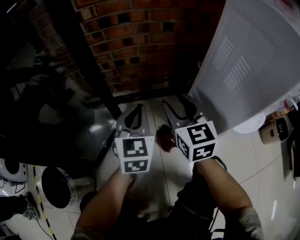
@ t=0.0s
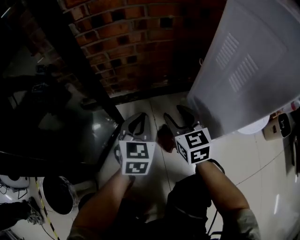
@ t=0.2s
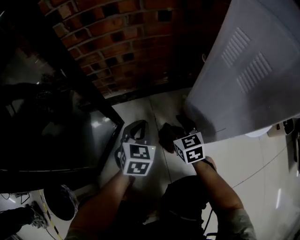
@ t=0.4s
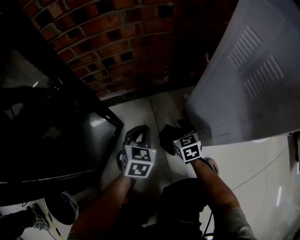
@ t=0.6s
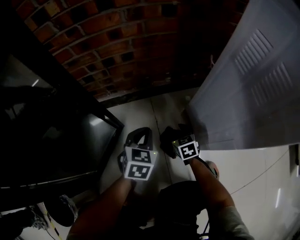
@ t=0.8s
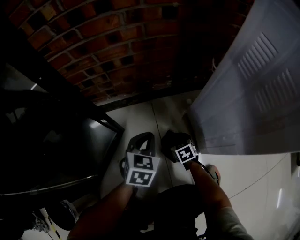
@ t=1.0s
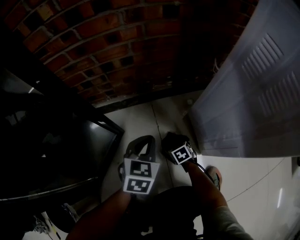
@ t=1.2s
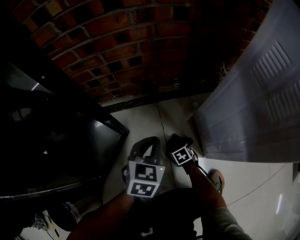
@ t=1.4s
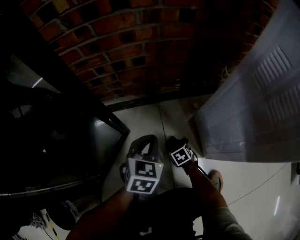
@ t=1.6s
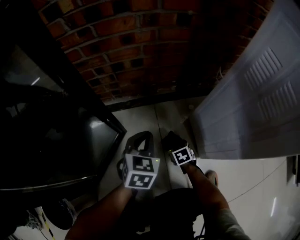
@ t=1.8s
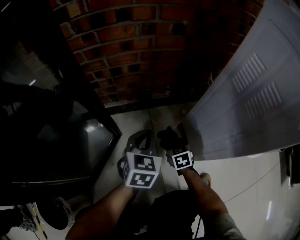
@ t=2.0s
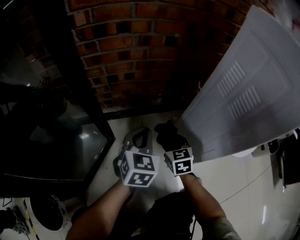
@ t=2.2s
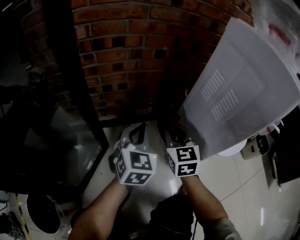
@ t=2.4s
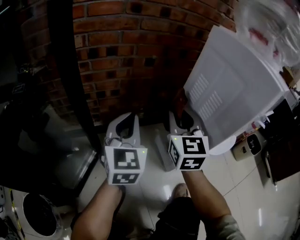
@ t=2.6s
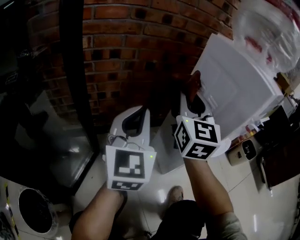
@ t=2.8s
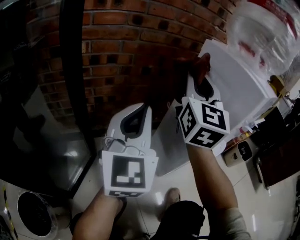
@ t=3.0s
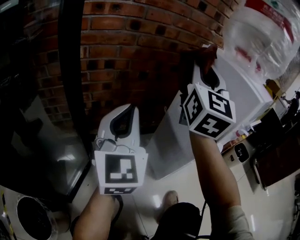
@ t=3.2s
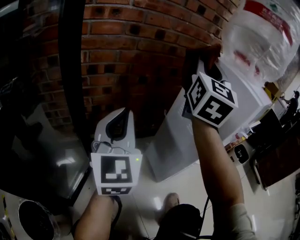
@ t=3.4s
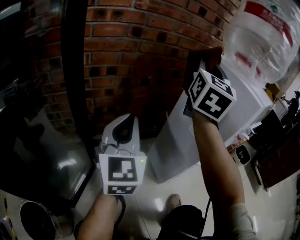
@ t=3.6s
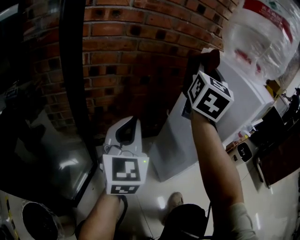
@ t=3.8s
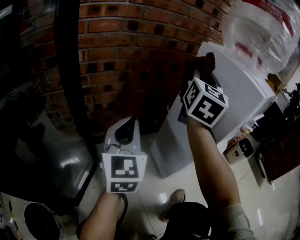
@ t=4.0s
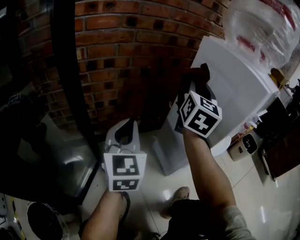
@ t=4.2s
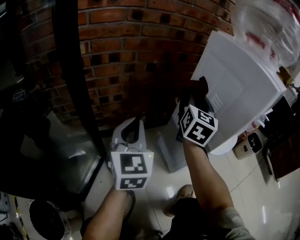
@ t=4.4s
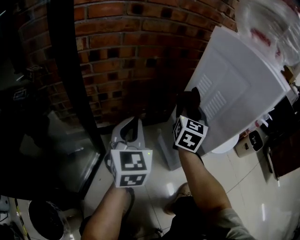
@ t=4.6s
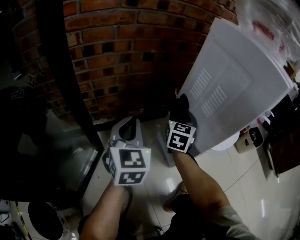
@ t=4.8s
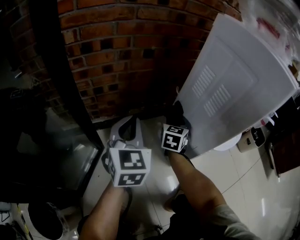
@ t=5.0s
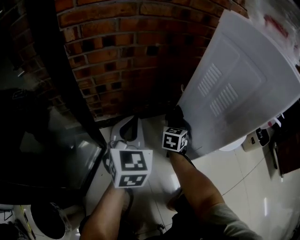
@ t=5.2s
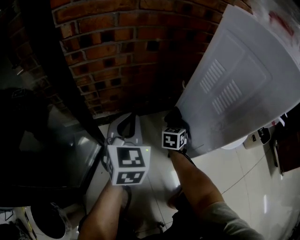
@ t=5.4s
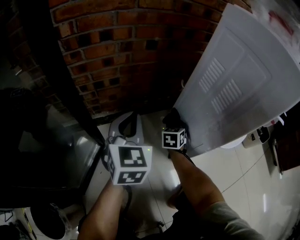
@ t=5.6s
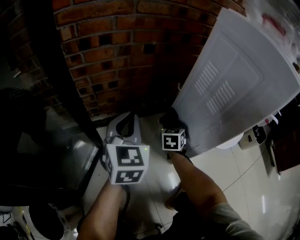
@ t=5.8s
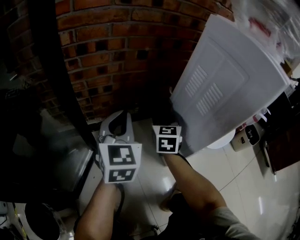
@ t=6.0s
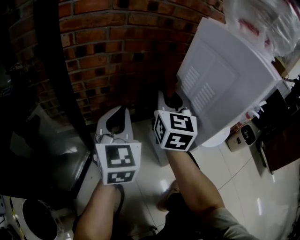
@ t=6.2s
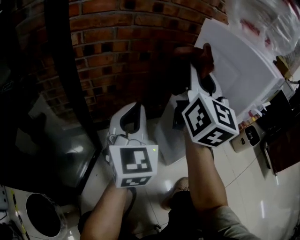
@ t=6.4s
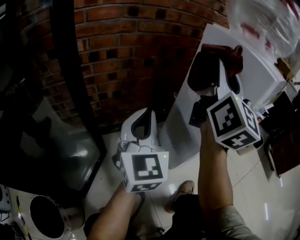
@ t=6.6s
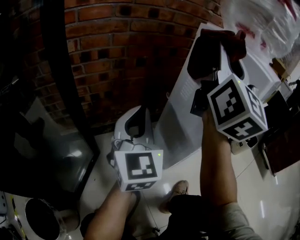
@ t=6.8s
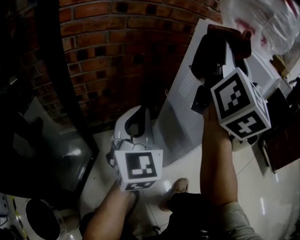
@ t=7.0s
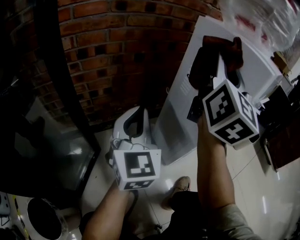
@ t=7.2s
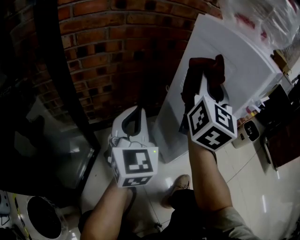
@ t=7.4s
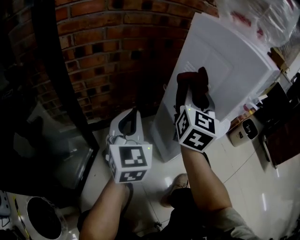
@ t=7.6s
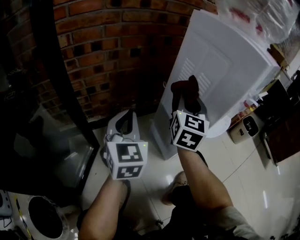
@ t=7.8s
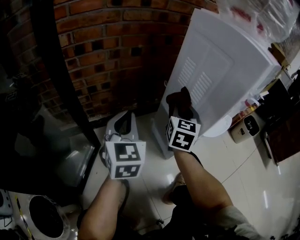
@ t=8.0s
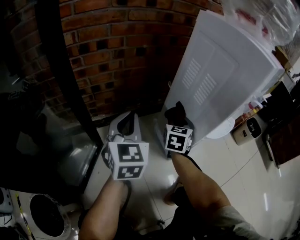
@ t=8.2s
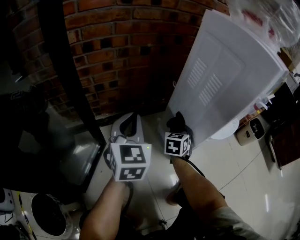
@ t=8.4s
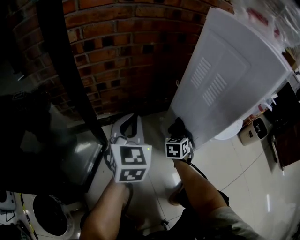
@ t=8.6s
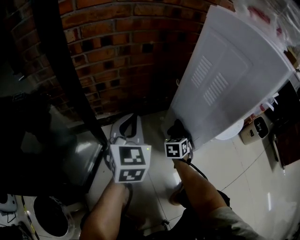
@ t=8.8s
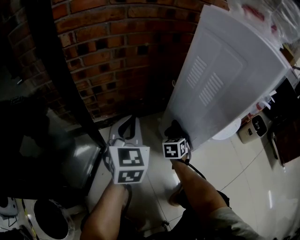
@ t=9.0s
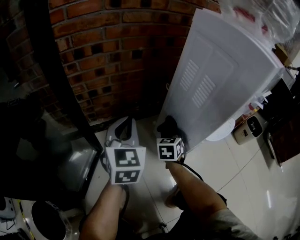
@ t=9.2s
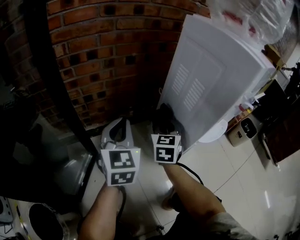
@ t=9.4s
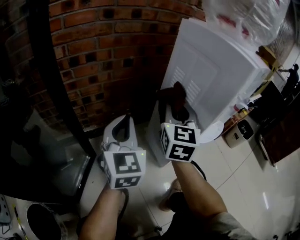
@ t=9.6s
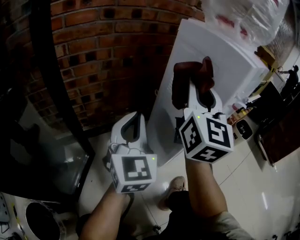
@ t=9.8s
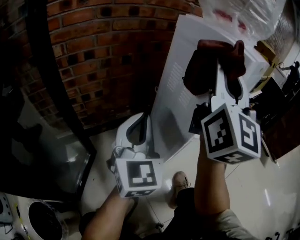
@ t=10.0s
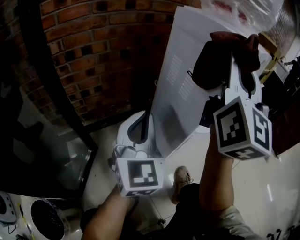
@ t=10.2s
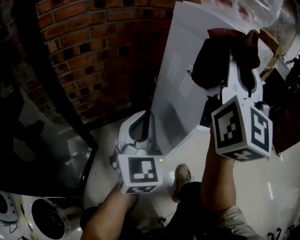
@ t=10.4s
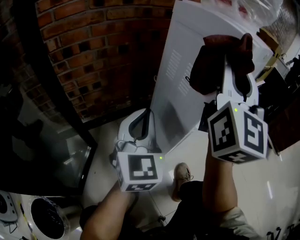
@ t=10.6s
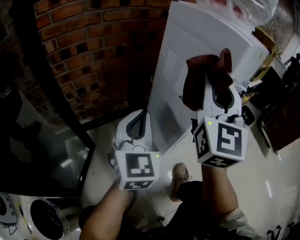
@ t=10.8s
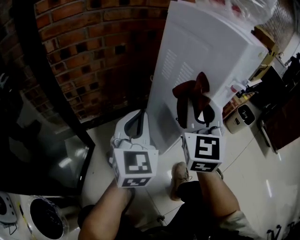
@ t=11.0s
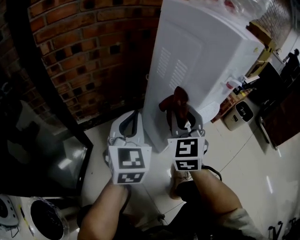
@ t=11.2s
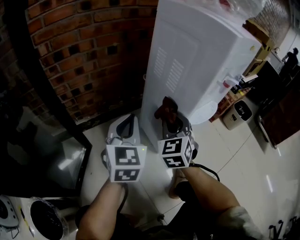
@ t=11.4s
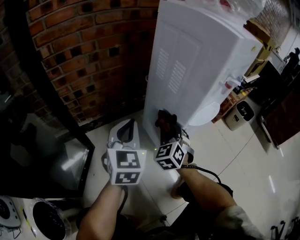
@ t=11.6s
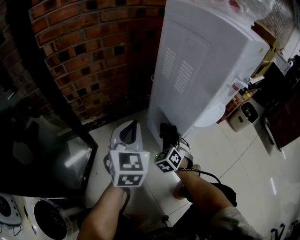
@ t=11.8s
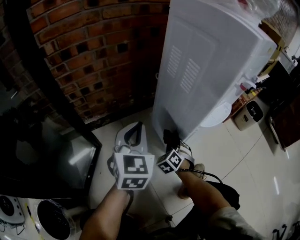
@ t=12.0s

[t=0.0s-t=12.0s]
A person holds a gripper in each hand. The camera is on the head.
t=0.0s to t=1.6s: The right gripper travels downward by approximately 50 cm, tips its fingers downward by about 50 degrees, and closes up. Meanwhile the left gripper heads downward, covering some 15 cm, and changes its angle by roughly 20 degrees.
t=1.6s to t=3.0s: The right gripper heads upward, covering roughly 70 cm, and tips its fingers upward by about 80 degrees, while the left gripper is displaced upward by some 40 cm, and angles its fingers upward, by about 50 degrees.
t=3.0s to t=4.4s: The right gripper travels downward, forward and to the right by approximately 15 cm, and rotates roughly 20 degrees, while the left gripper goes approximately 10 cm downward.
t=4.4s to t=6.0s: The right gripper is displaced downward by roughly 20 cm, and rotates about 30 degrees.
t=6.0s to t=7.6s: The right gripper heads upward and to the right, covering roughly 20 cm, and turns by roughly 30 degrees, while the left gripper travels upward and back again, roughly 10 cm each way.
t=7.6s to t=9.0s: The right gripper goes approximately 35 cm downward, and points its fingers about 40 degrees further downward, while the left gripper travels downward by roughly 5 cm.
t=9.0s to t=10.4s: The right gripper heads upward, covering roughly 50 cm, and tips its fingers upward by some 70 degrees. The left gripper shifts about 15 cm to the right and upward.
t=10.4s to t=12.0s: The left gripper heads downward, covering some 10 cm; the right gripper heads downward, covering about 60 cm, and points its fingers about 70 degrees further downward.

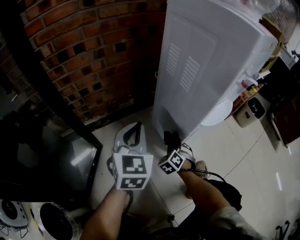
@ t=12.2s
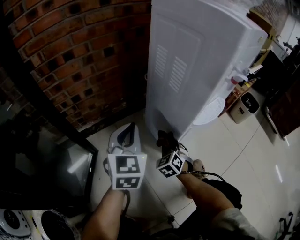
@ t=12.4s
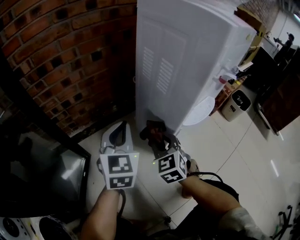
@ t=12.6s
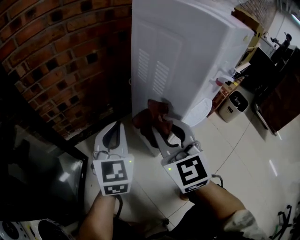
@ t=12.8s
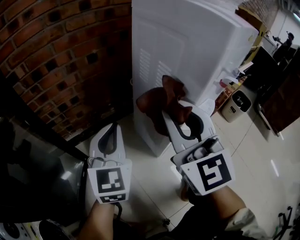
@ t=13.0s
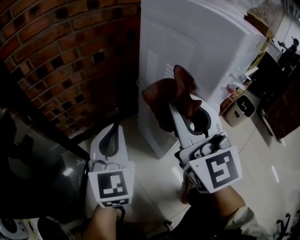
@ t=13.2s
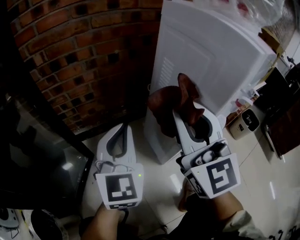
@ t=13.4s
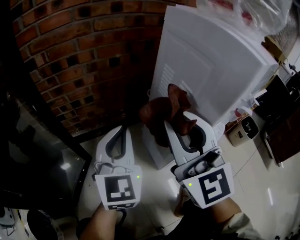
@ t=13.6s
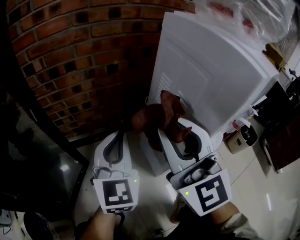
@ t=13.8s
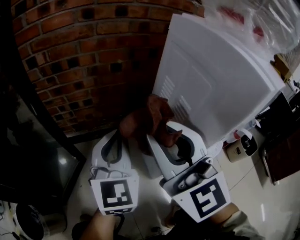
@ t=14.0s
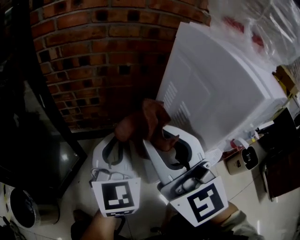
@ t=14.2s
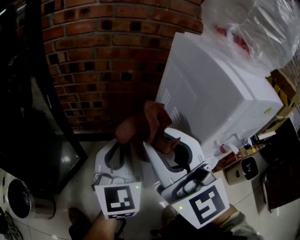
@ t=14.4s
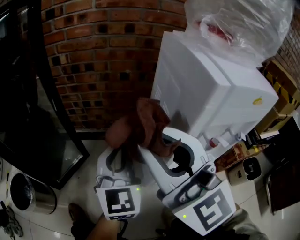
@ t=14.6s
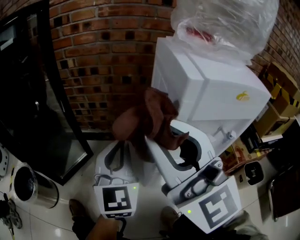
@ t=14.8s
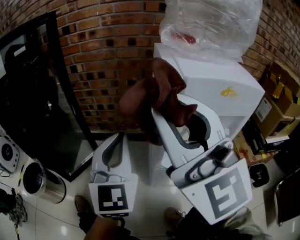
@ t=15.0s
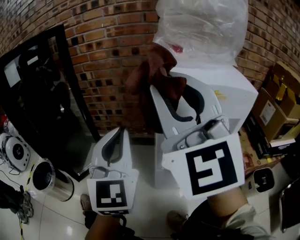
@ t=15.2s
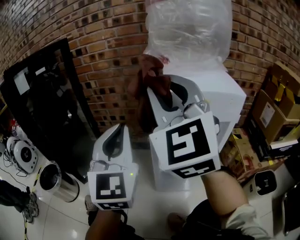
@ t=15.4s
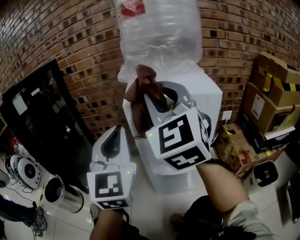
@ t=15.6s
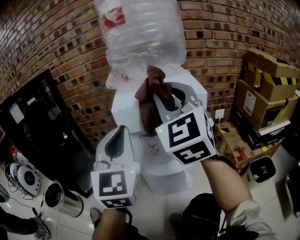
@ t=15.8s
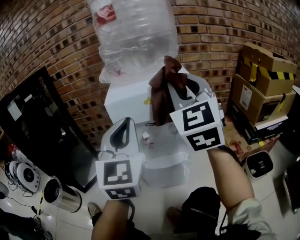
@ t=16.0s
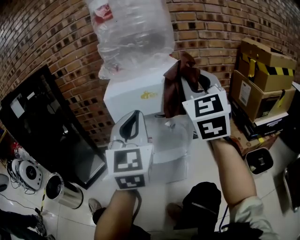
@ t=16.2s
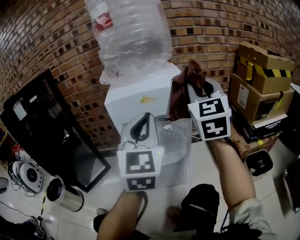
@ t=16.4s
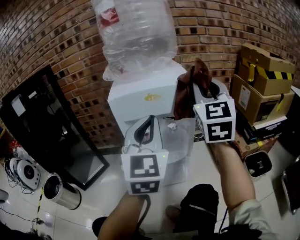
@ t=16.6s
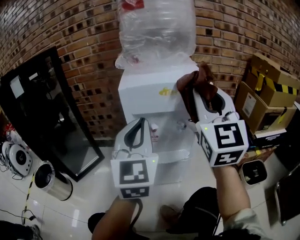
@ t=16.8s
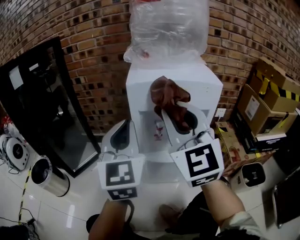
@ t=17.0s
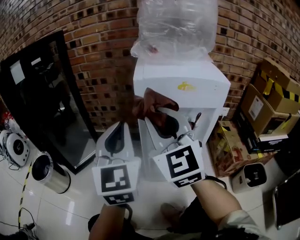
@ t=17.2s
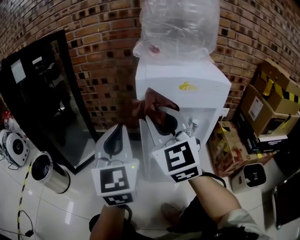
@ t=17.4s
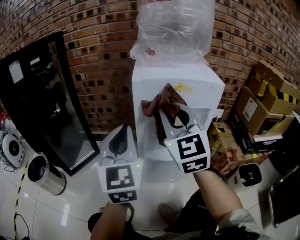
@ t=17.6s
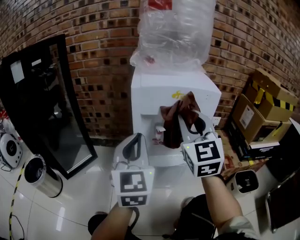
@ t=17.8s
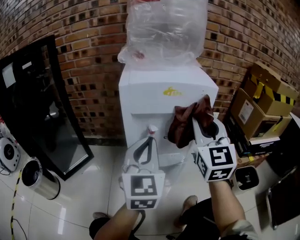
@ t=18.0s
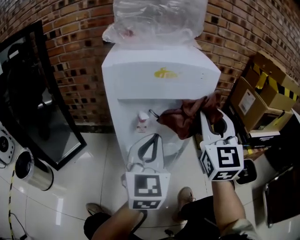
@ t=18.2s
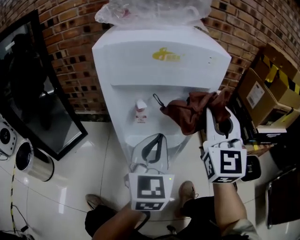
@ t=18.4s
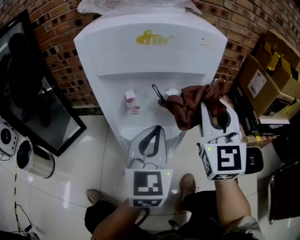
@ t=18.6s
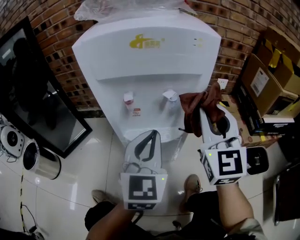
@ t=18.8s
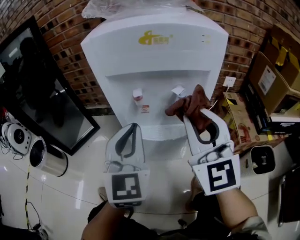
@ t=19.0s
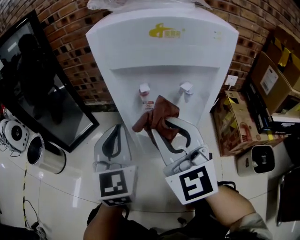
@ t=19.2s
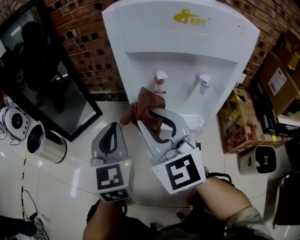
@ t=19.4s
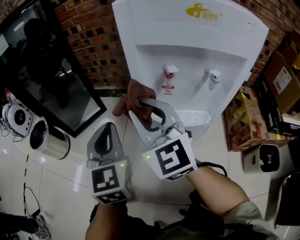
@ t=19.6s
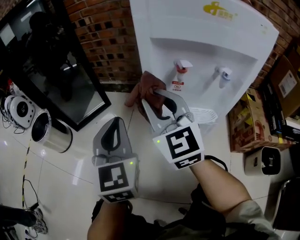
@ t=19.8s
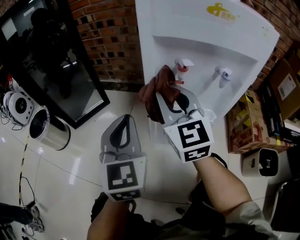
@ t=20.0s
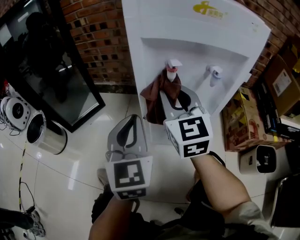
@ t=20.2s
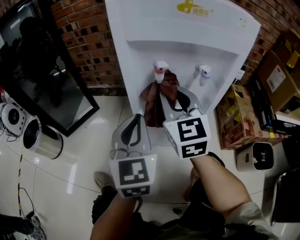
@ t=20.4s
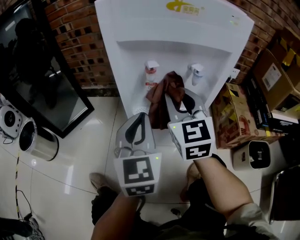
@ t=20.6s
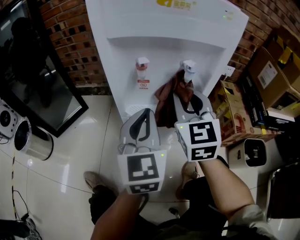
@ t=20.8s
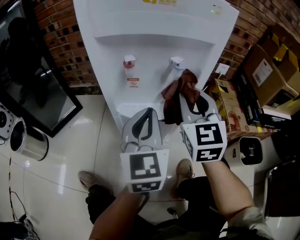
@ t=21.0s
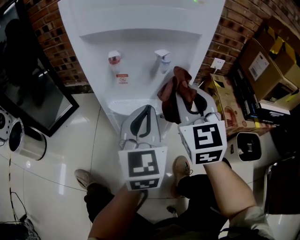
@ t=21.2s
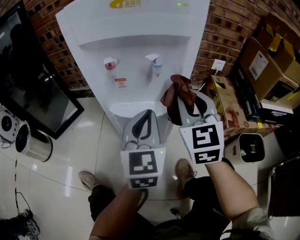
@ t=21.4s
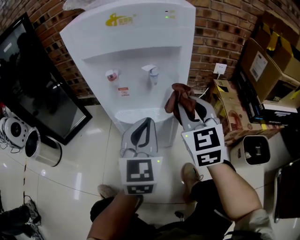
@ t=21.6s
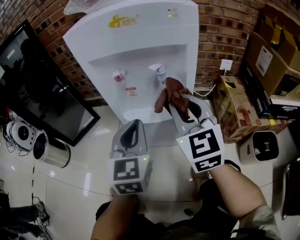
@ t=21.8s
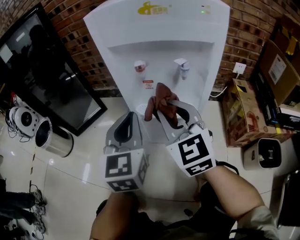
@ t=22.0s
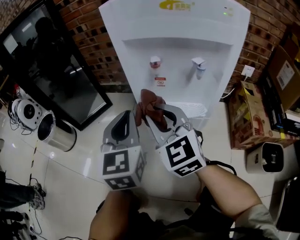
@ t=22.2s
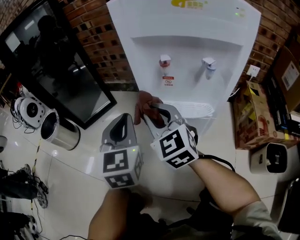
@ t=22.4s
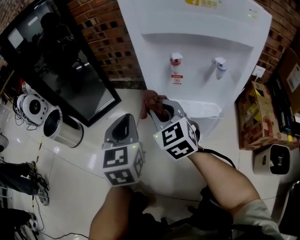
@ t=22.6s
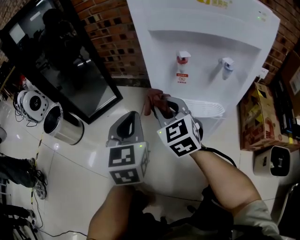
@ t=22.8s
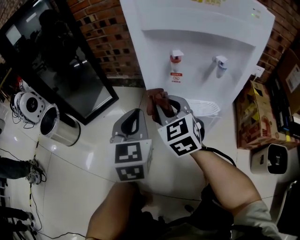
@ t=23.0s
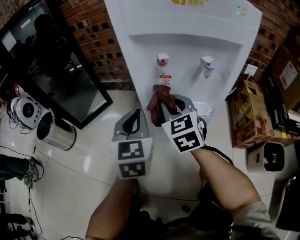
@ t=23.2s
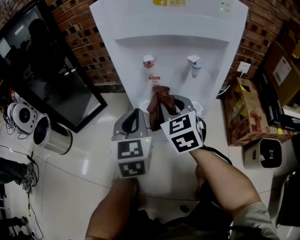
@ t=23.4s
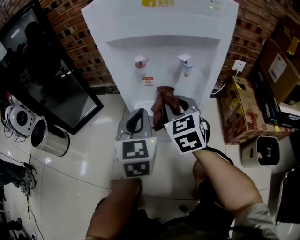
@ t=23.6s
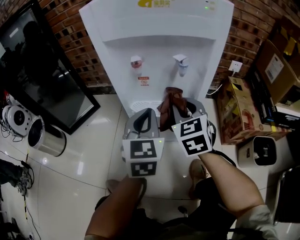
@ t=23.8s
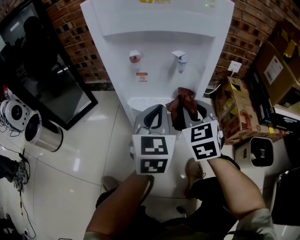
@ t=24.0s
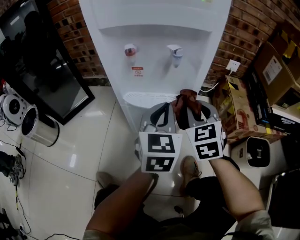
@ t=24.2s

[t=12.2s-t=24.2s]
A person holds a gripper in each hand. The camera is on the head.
t=12.2s to t=13.8s: The left gripper is displaced upward by some 10 cm. The right gripper goes roughly 40 cm upward, and points its fingers about 50 degrees further upward.
t=13.8s to t=15.2s: The right gripper moves upward, backward and to the right, about 20 cm, and swivels approximately 20 degrees. Meanwhile the left gripper moves upward and backward, about 25 cm, and rotates roughly 30 degrees.
t=15.2s to t=16.6s: Both grippers travel together to the right, approximately 25 cm. The right gripper rotates some 30 degrees.
t=16.6s to t=18.2s: Both grippers move downward, some 15 cm. The right gripper goes to the left and returns, some 25 cm each way. The left gripper travels to the left and back again, some 15 cm each way.
t=18.2s to t=19.8s: The right gripper changes place by roughly 30 cm, and rotates roughly 40 degrees, while the left gripper changes place by about 20 cm, and turns by about 30 degrees.
t=19.8s to t=21.2s: The two grippers go some 25 cm to the right. The left gripper turns by about 20 degrees, while the right gripper turns by roughly 30 degrees.
t=21.2s to t=22.6s: The right gripper changes place by approximately 25 cm, and rotates roughly 30 degrees, while the left gripper shifts by some 20 cm, and swivels some 20 degrees.
t=22.6s to t=24.2s: The two grippers go roughly 25 cm to the right. The left gripper swivels approximately 20 degrees. Meanwhile the right gripper changes its angle by about 30 degrees.
